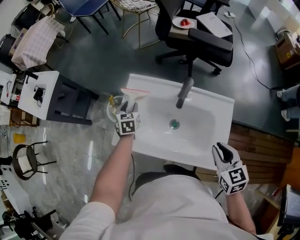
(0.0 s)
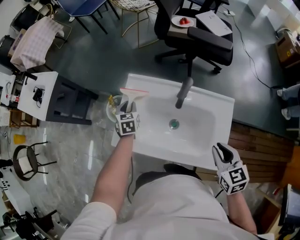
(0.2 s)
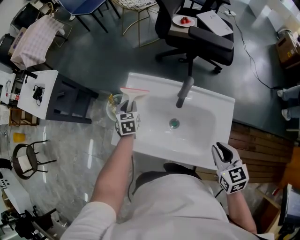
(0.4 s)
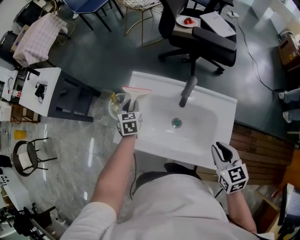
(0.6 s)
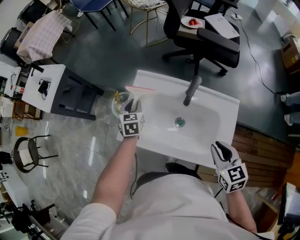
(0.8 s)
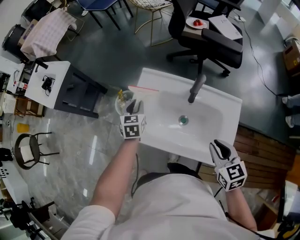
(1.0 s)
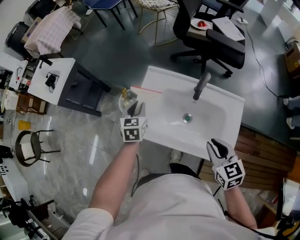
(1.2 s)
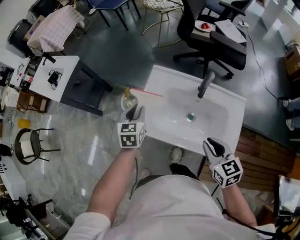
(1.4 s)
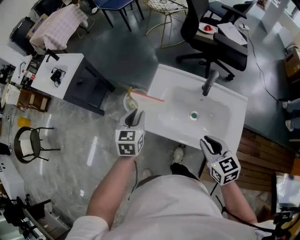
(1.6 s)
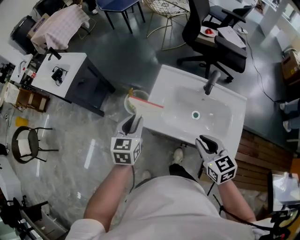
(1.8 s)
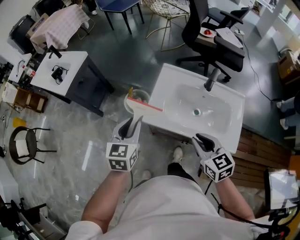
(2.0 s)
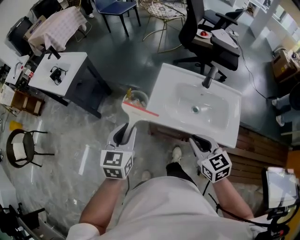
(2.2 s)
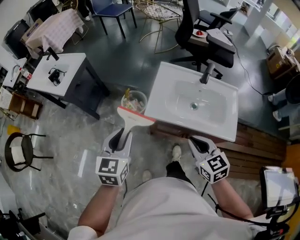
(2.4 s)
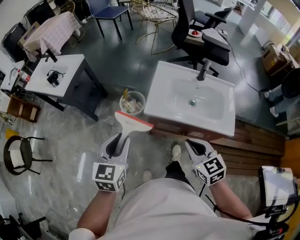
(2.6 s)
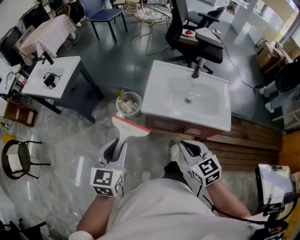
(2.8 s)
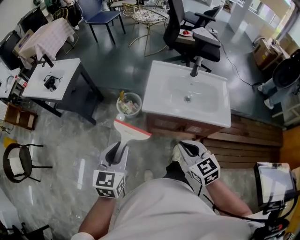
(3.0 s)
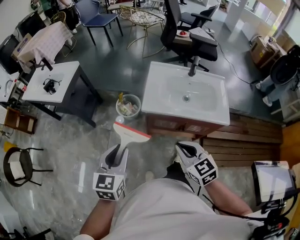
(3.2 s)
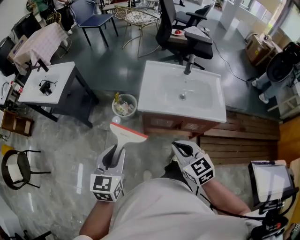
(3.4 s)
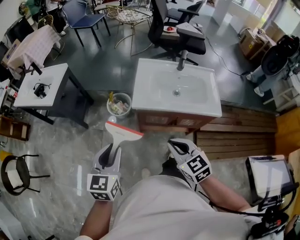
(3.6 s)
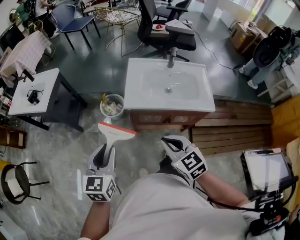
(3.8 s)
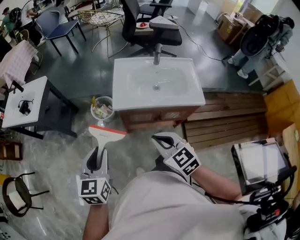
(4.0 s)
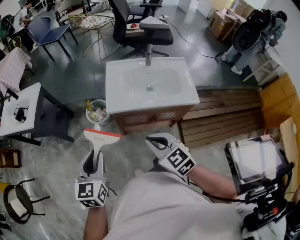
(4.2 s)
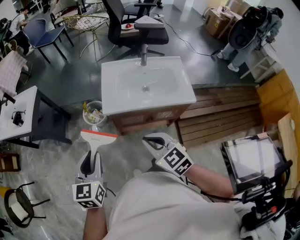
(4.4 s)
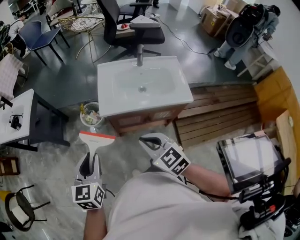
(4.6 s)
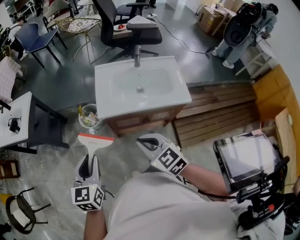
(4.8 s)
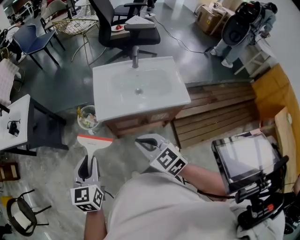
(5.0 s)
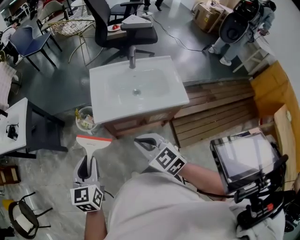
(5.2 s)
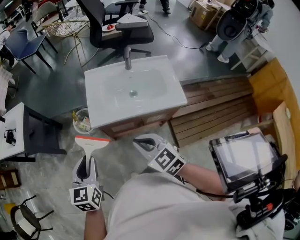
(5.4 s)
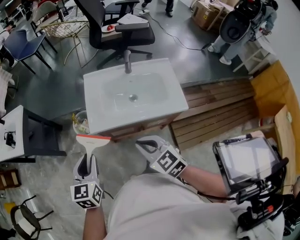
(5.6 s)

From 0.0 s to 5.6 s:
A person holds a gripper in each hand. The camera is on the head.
From 0.0 s to 1.4 s: The right gripper is displaced to the left by roughly 15 cm. Meanwhile the left gripper shifts about 15 cm upward, backward and to the left.
From 1.4 s to 2.8 s: The right gripper moves to the left and backward, roughly 30 cm. Meanwhile the left gripper is displaced backward, to the left and upward by roughly 35 cm.
From 2.8 s to 4.2 s: The grippers make only small movements.
From 4.2 s to 5.6 s: The grippers both shift forward and to the right by approximately 10 cm.

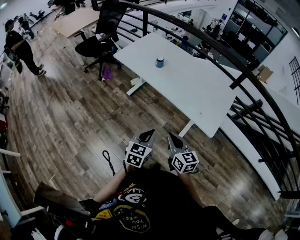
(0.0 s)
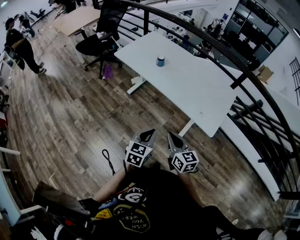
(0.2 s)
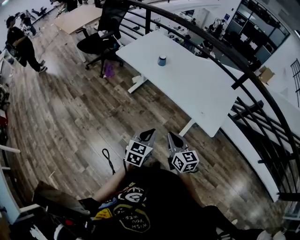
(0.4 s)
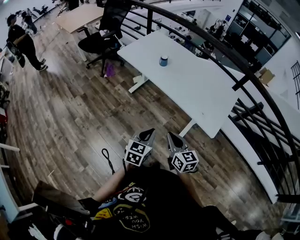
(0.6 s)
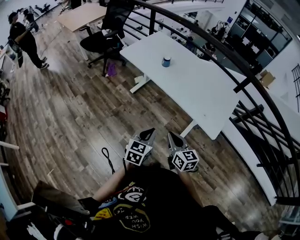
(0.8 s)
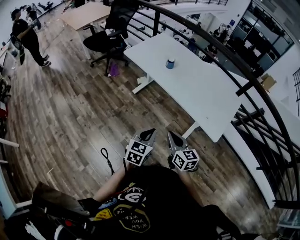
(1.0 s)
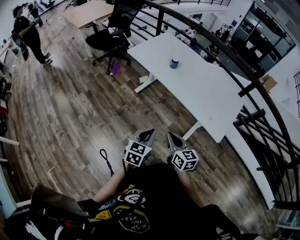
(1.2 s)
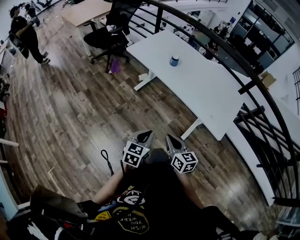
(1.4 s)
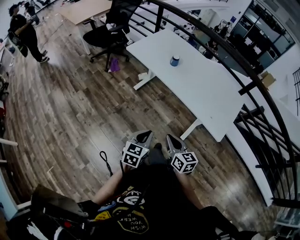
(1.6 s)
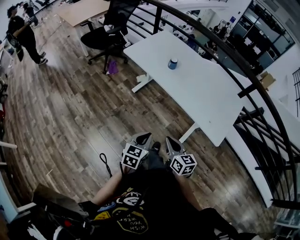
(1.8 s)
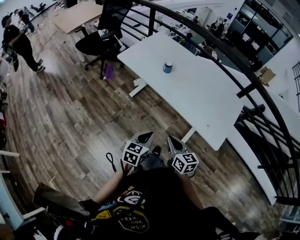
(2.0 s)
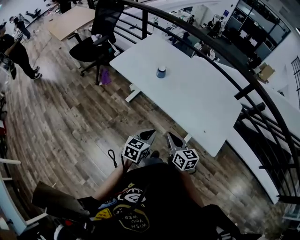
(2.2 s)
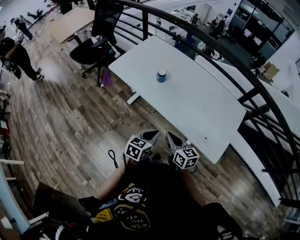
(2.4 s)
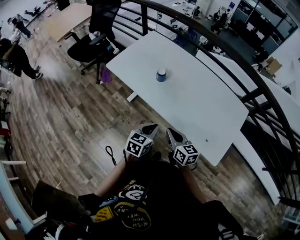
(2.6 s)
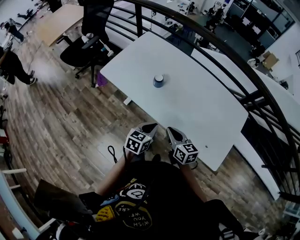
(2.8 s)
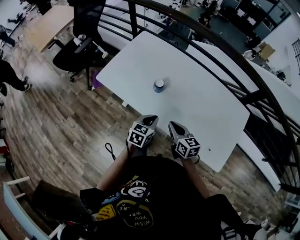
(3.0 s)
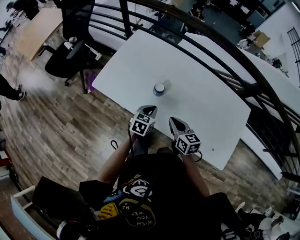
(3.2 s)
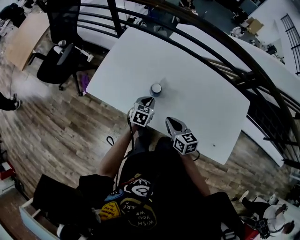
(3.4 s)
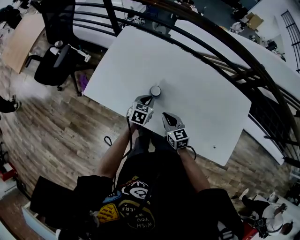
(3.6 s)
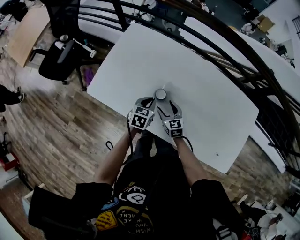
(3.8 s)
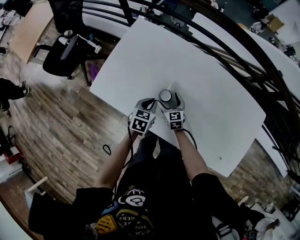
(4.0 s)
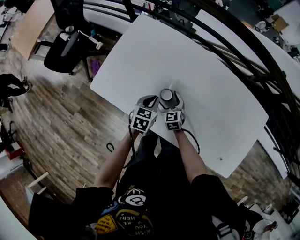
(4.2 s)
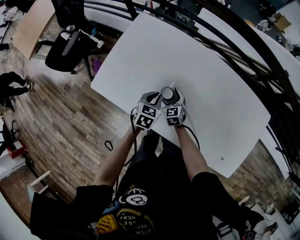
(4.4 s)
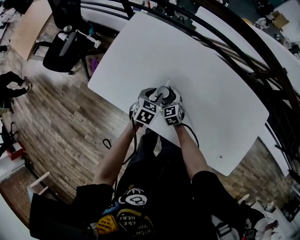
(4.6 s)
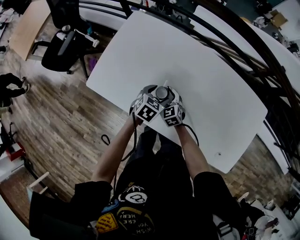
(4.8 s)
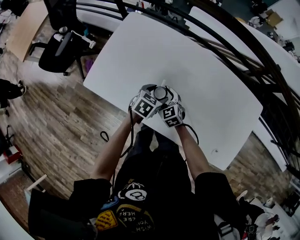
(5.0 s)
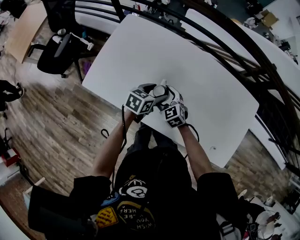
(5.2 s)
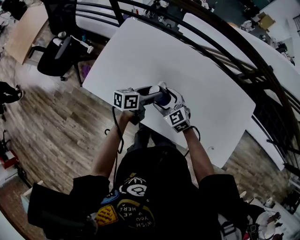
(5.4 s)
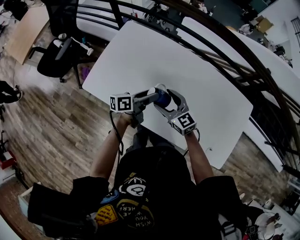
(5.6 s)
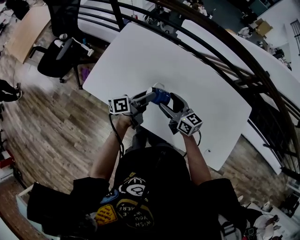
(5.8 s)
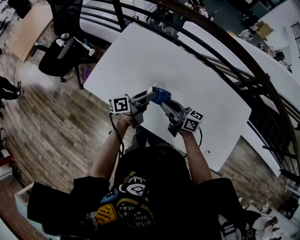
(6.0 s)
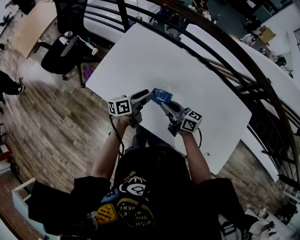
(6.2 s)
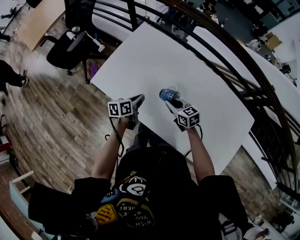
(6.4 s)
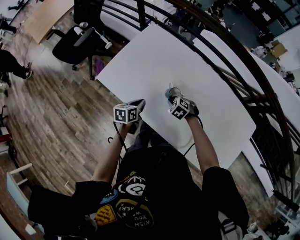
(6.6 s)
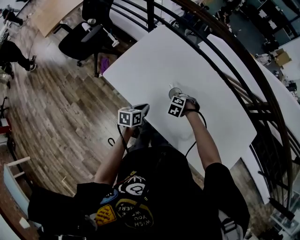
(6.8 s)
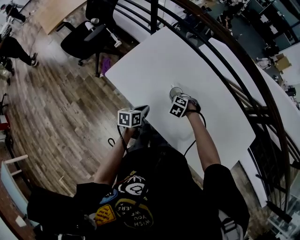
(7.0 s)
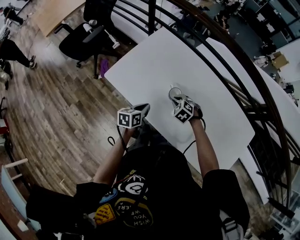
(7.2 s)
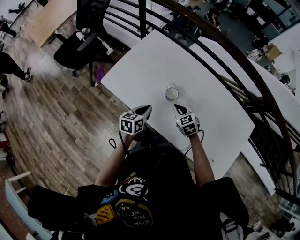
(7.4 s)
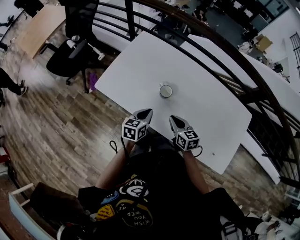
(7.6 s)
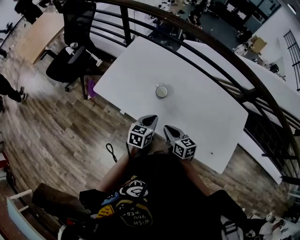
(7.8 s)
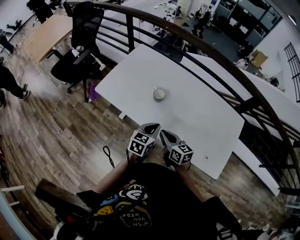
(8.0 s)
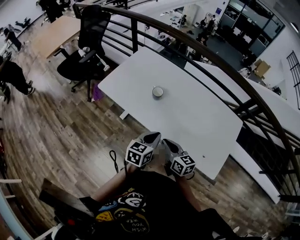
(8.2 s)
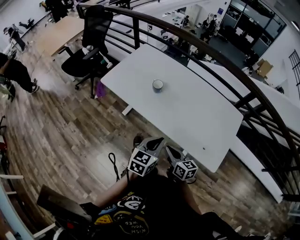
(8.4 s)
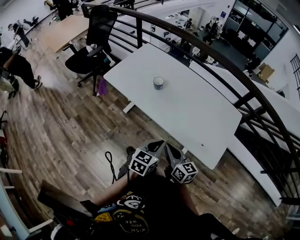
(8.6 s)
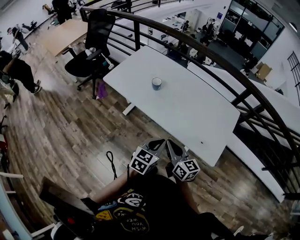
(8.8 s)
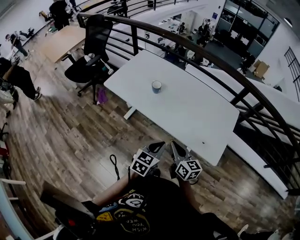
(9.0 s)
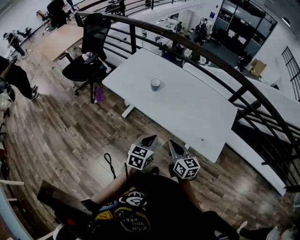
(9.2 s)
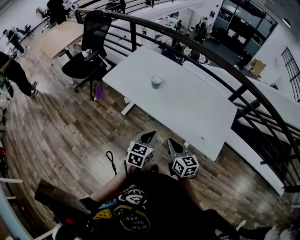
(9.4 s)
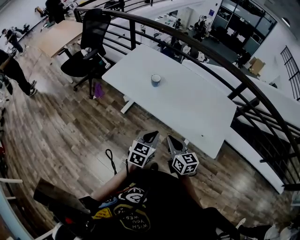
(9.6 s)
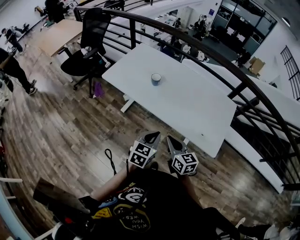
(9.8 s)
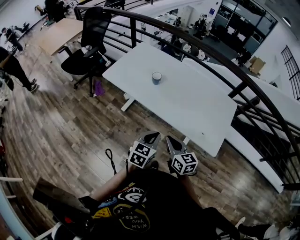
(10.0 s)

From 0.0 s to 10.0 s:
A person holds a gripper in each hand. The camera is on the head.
From 0.0 s to 1.4 s: The two grippers go roughly 10 cm to the left.
From 1.4 s to 2.8 s: The grippers both shift forward by approximately 35 cm.
From 2.8 s to 4.2 s: The right gripper heads forward and downward, covering some 40 cm, turns by approximately 30 degrees, and opens its fingers, while the left gripper goes some 30 cm forward.
From 4.2 s to 5.8 s: The right gripper heads upward, covering some 20 cm, and rotates roughly 40 degrees. Meanwhile the left gripper travels upward by roughly 10 cm, angles its fingers upward, by roughly 40 degrees, and opens.
From 5.8 s to 7.2 s: The left gripper ends up approximately 15 cm from where it was, tilts its fingers some 30 degrees downward, and closes, while the right gripper travels downward by some 15 cm, tilts its fingers roughly 50 degrees downward, and closes up.
From 7.2 s to 8.6 s: The pair of grippers is taken backward and to the right, approximately 40 cm. Both grippers move upward, approximately 15 cm. The left gripper swivels approximately 30 degrees, while the right gripper tips its fingers upward by about 50 degrees.
From 8.6 s to 10.0 s: The left gripper ends up about 5 cm from where it was.

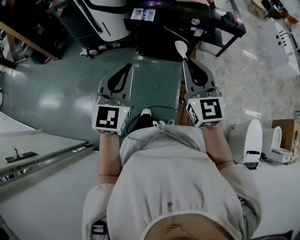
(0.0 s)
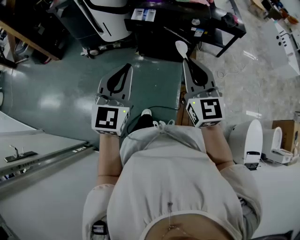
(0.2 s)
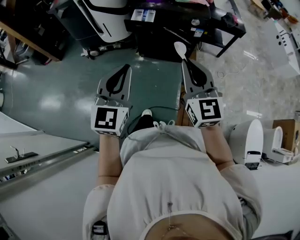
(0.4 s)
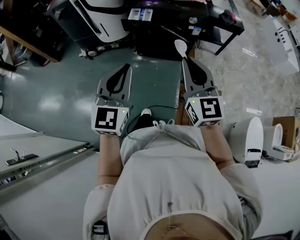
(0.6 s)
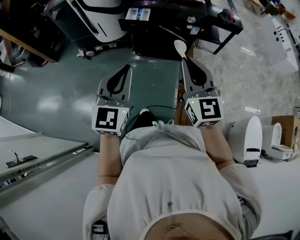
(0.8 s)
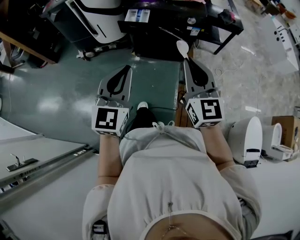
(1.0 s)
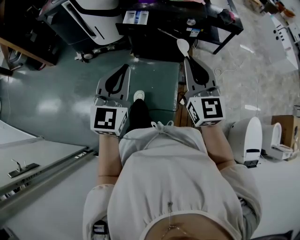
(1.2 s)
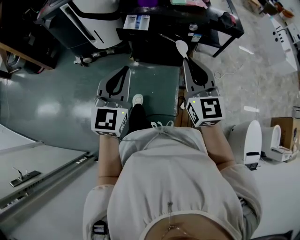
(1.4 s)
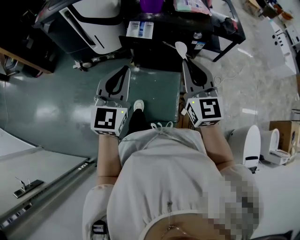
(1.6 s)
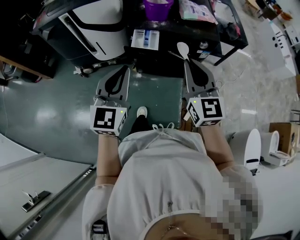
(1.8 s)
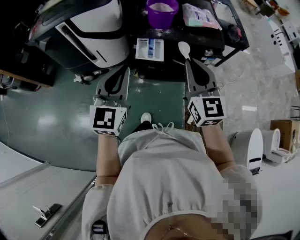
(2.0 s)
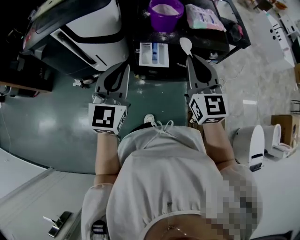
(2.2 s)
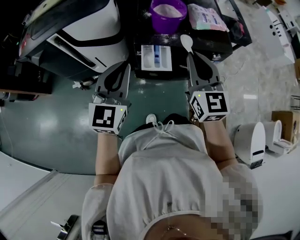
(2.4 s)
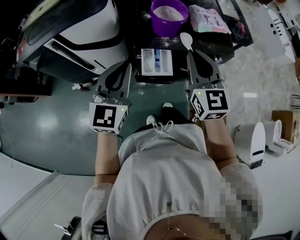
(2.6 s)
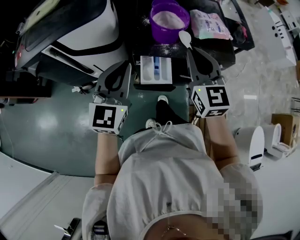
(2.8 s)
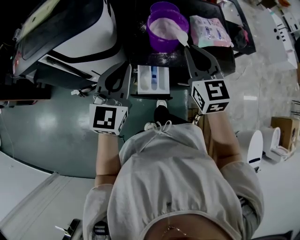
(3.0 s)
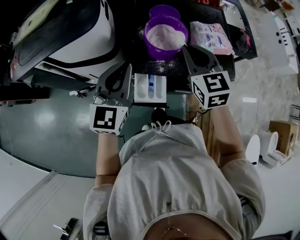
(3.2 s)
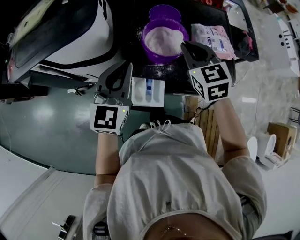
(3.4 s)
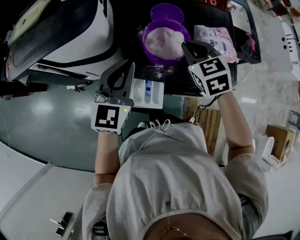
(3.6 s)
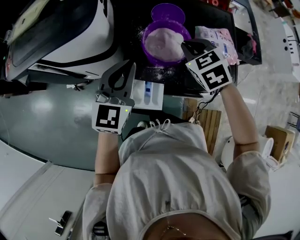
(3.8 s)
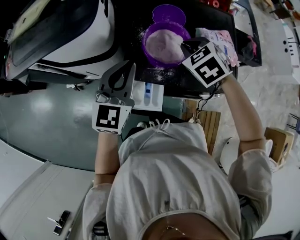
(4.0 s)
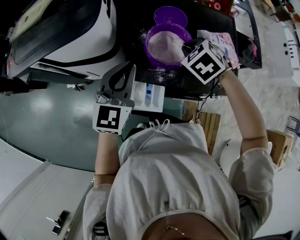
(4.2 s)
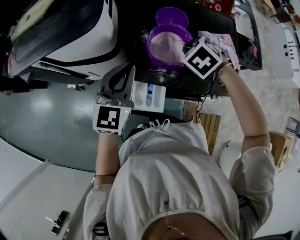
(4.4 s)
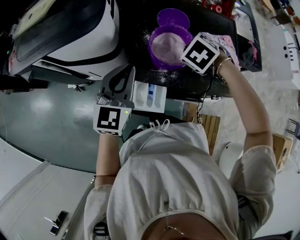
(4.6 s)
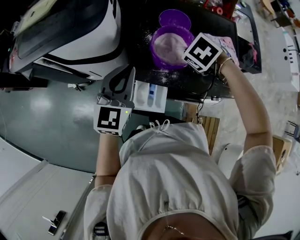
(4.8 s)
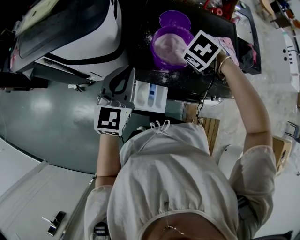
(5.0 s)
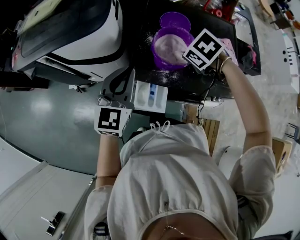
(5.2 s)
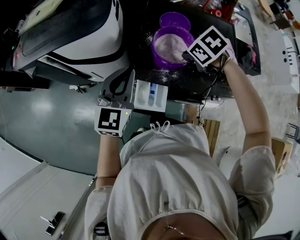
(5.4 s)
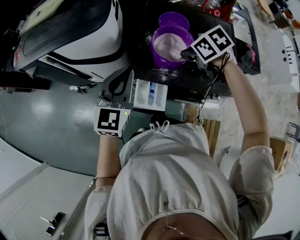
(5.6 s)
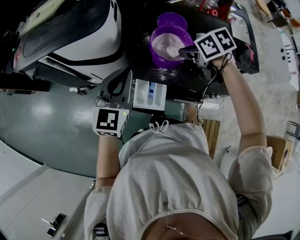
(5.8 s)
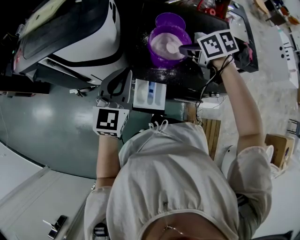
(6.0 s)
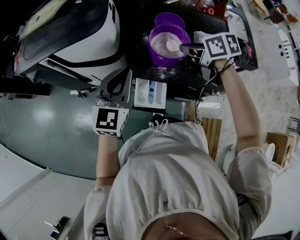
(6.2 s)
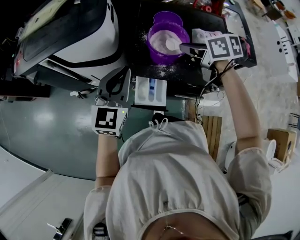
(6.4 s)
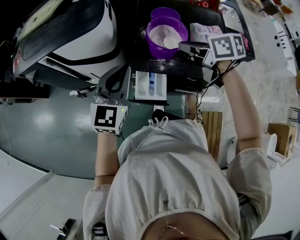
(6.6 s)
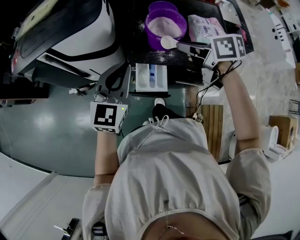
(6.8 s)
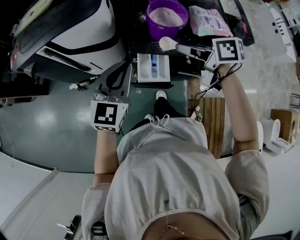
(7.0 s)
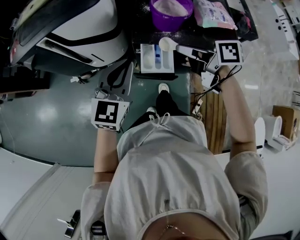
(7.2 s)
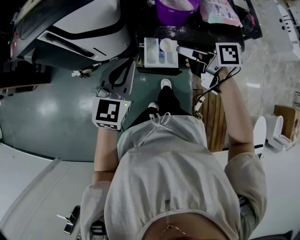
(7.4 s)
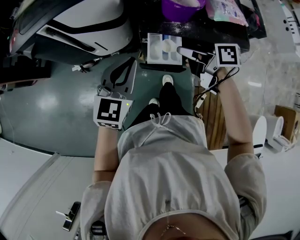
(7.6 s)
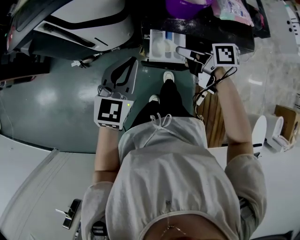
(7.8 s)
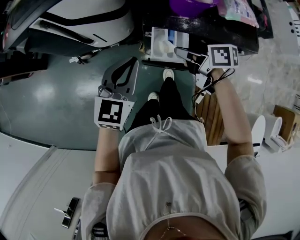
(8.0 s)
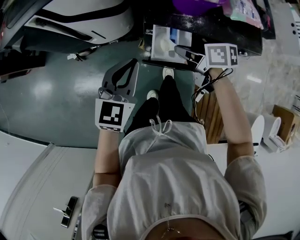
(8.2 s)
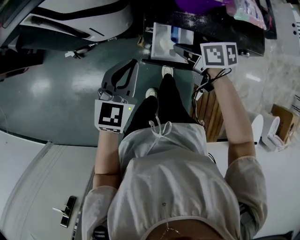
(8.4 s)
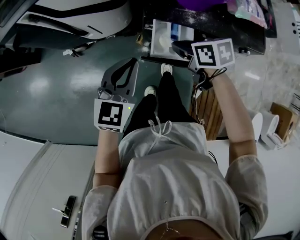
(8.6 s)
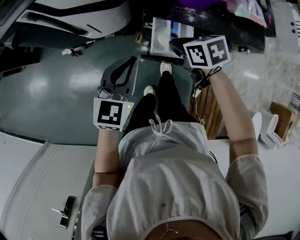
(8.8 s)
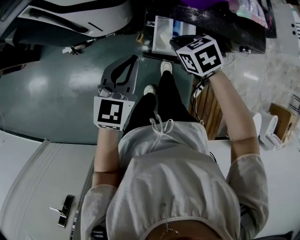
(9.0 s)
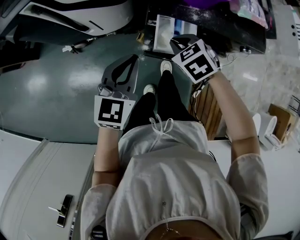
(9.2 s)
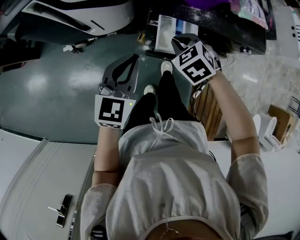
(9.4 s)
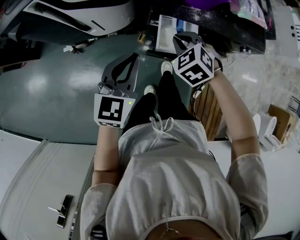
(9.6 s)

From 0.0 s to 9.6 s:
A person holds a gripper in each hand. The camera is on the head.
From 0.0 s to 1.6 s: Both grippers move forward, about 15 cm.
From 1.6 s to 3.2 s: Both grippers are carried forward, some 50 cm.
From 3.2 s to 4.8 s: The left gripper moves some 5 cm; the right gripper travels downward by approximately 10 cm, and tips its fingers downward by some 50 degrees.
From 4.8 s to 6.4 s: The left gripper changes place by roughly 5 cm. Meanwhile the right gripper goes about 5 cm upward, and tilts its fingers roughly 40 degrees upward.
From 6.4 s to 8.0 s: The left gripper goes about 15 cm downward, backward and to the left. The right gripper shifts about 25 cm downward, to the left and backward, and turns by approximately 30 degrees.
From 8.0 s to 9.6 s: The left gripper ends up some 5 cm from where it was; the right gripper ends up roughly 5 cm from where it was, and rolls counterclockwise, seen from behind, by roughly 70 degrees.